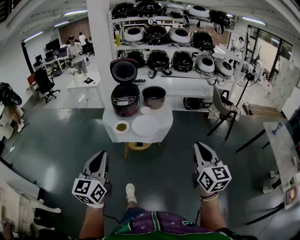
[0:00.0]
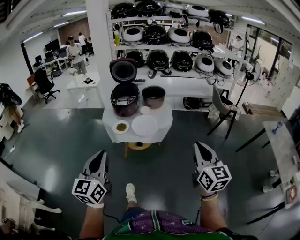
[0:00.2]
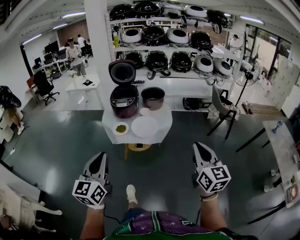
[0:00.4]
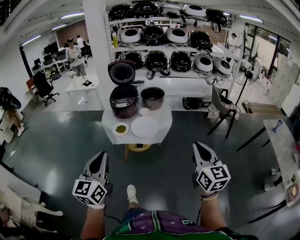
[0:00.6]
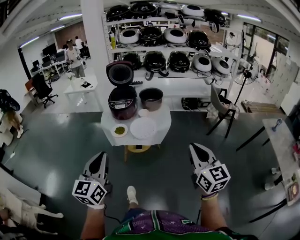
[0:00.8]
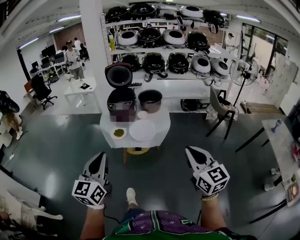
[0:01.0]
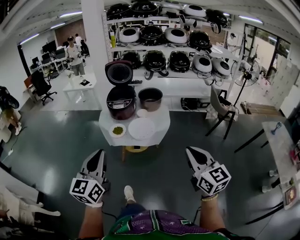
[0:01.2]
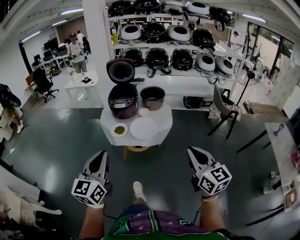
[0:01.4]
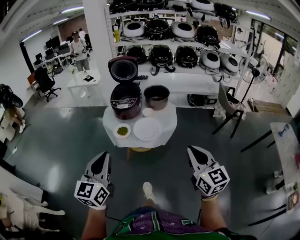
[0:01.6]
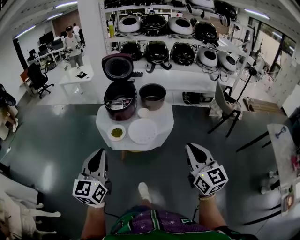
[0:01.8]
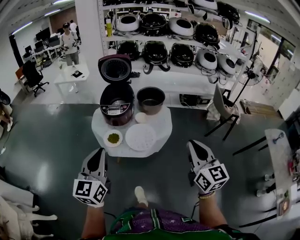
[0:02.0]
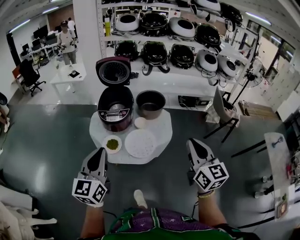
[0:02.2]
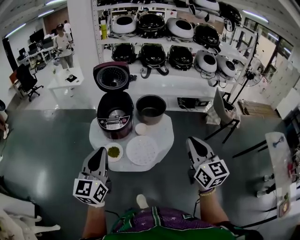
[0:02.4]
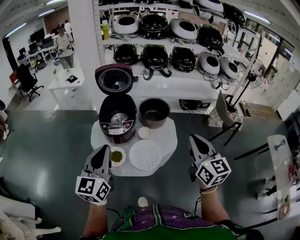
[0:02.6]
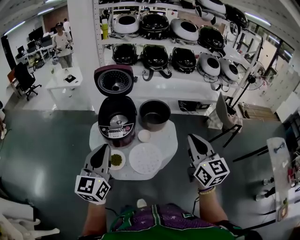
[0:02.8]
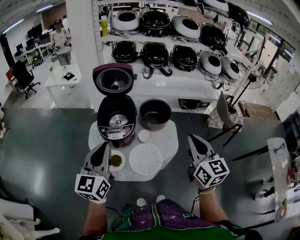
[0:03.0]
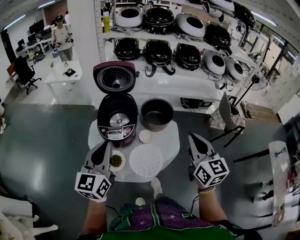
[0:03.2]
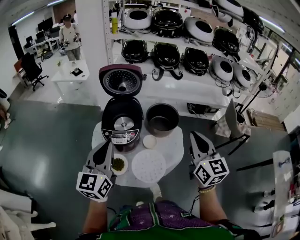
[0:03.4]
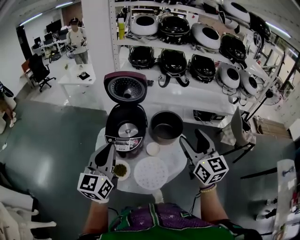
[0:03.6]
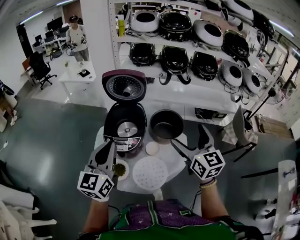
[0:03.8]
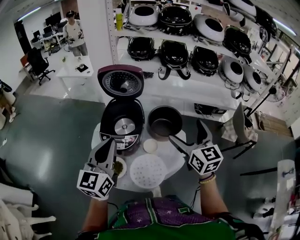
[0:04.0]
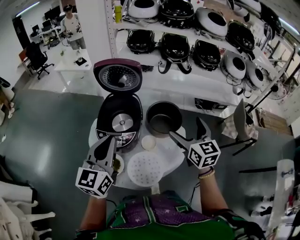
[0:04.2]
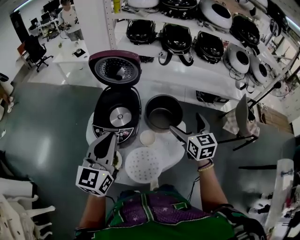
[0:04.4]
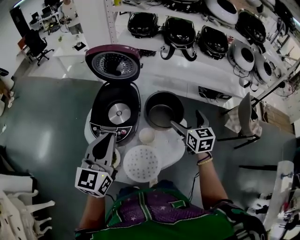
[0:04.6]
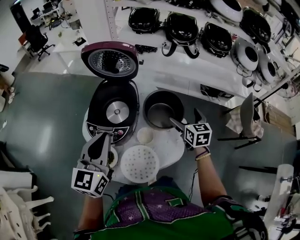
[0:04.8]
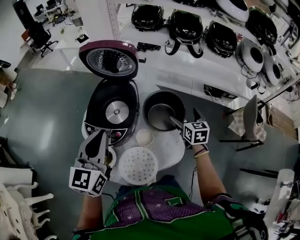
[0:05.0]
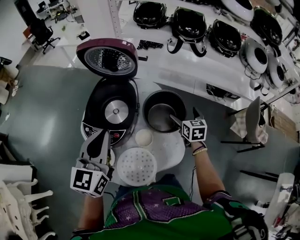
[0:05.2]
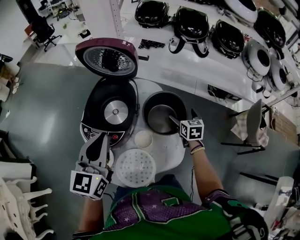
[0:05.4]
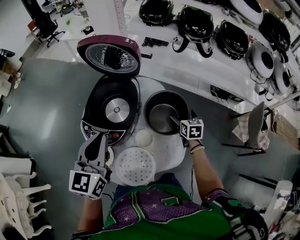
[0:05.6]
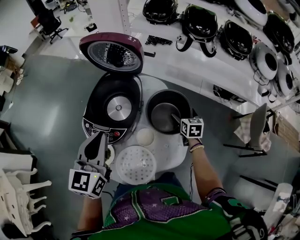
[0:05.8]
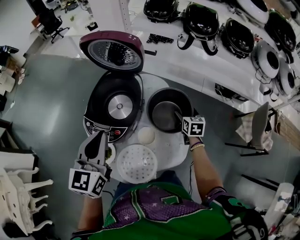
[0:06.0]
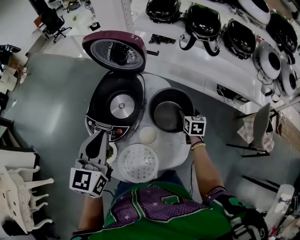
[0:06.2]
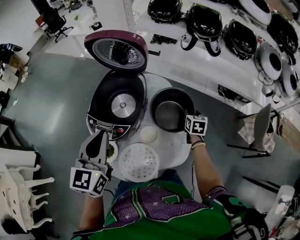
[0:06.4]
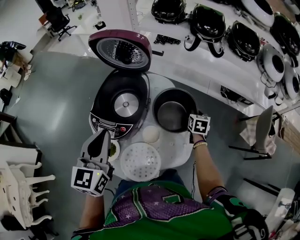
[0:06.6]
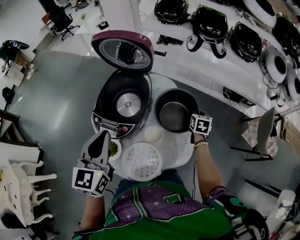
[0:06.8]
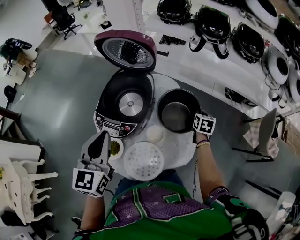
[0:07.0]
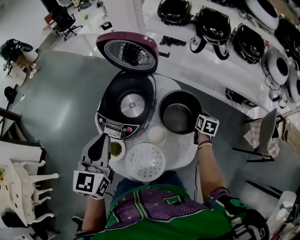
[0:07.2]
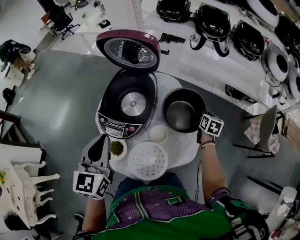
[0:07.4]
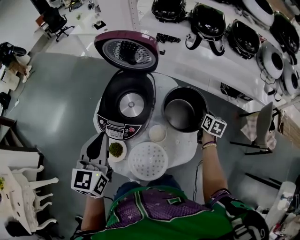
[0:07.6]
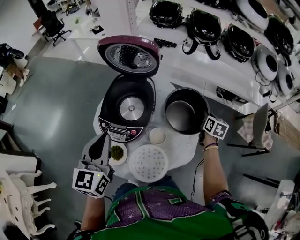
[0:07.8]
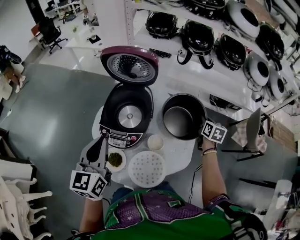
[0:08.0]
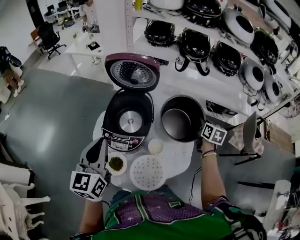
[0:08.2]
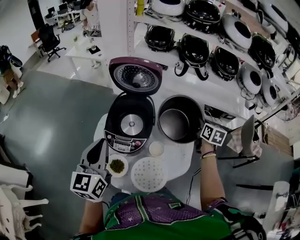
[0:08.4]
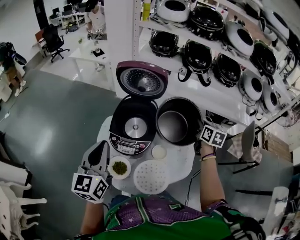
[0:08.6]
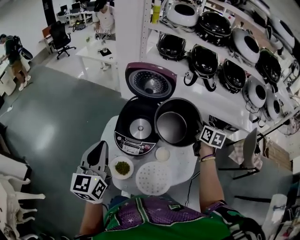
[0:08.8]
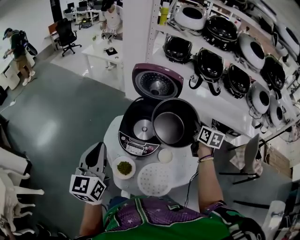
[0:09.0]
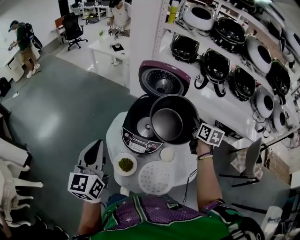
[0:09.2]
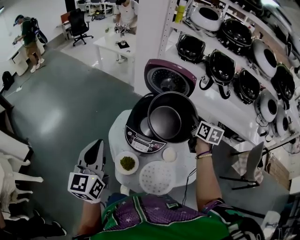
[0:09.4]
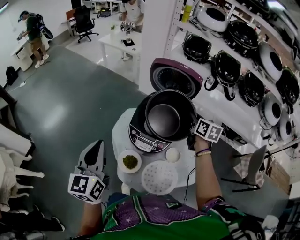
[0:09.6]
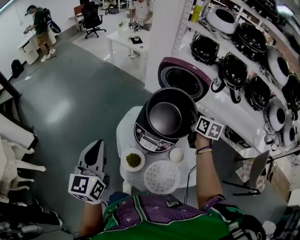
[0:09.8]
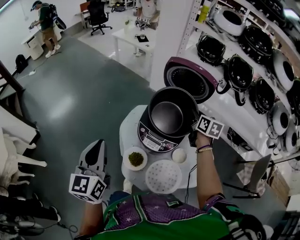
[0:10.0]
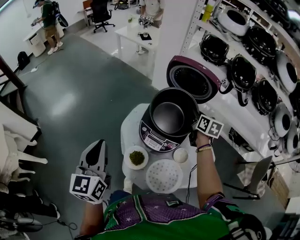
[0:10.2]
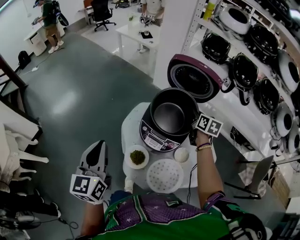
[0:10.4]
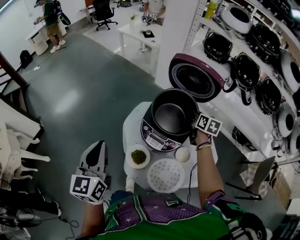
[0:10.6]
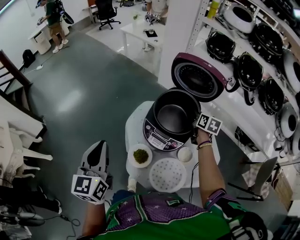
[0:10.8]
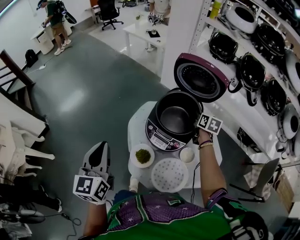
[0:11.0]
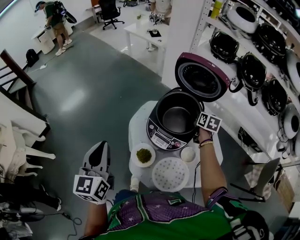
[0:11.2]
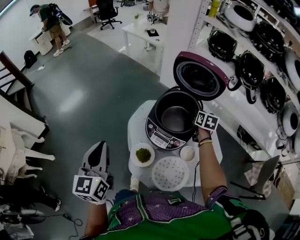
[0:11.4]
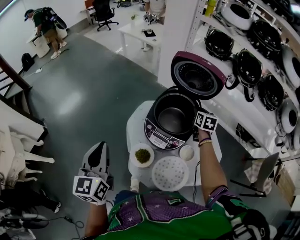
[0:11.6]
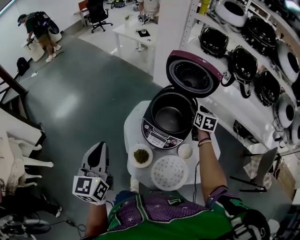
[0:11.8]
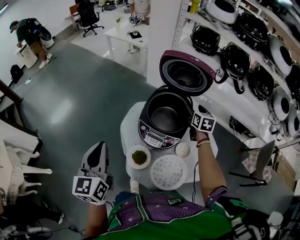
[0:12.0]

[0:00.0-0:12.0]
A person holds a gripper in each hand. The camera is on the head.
0:00.0 to 0:01.6: The two grippers go some 10 cm forward.
0:01.6 to 0:03.0: Both grippers travel together forward, approximately 35 cm.
0:03.0 to 0:04.4: The right gripper moves forward and downward, some 30 cm, and opens its fingers; the left gripper heads forward and to the right, covering about 15 cm.
0:04.4 to 0:06.0: The left gripper goes roughly 10 cm downward and forward; the right gripper travels downward and forward by about 30 cm, and rotates approximately 20 degrees.
0:06.0 to 0:07.6: The left gripper heads to the left, covering roughly 5 cm; the right gripper goes about 5 cm to the right, and closes up.
0:07.6 to 0:09.0: The left gripper shifts about 15 cm to the left, upward and backward. The right gripper goes roughly 25 cm upward and to the left.
0:09.0 to 0:10.4: The left gripper heads to the left, covering approximately 5 cm. The right gripper moves to the left, forward and downward, roughly 20 cm.
0:10.4 to 0:12.0: The right gripper opens.

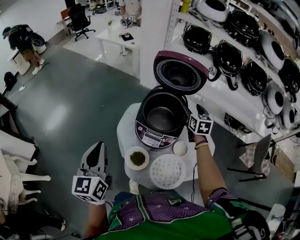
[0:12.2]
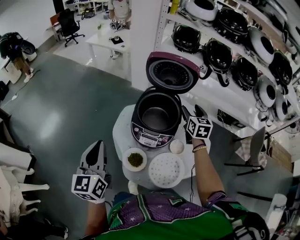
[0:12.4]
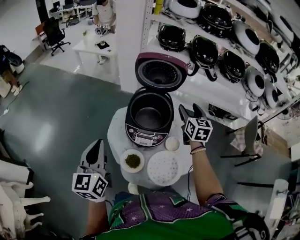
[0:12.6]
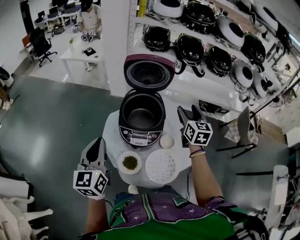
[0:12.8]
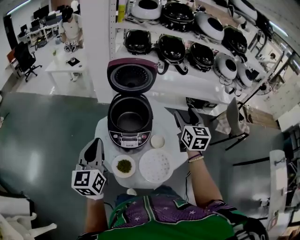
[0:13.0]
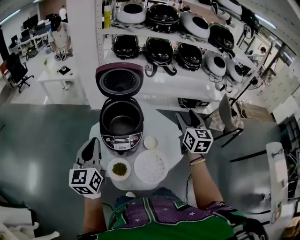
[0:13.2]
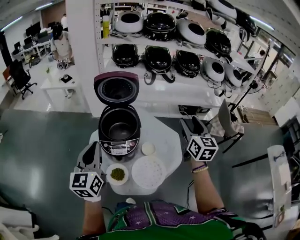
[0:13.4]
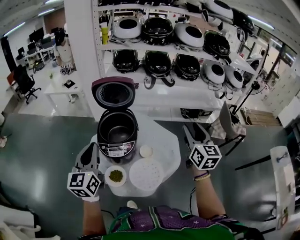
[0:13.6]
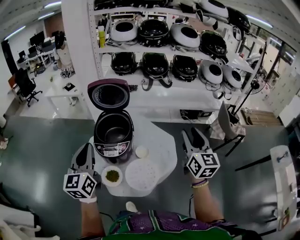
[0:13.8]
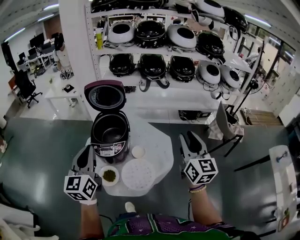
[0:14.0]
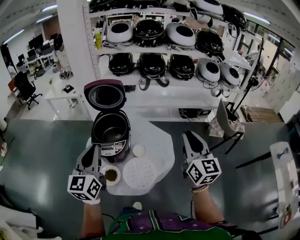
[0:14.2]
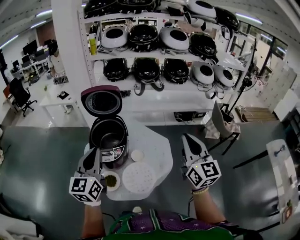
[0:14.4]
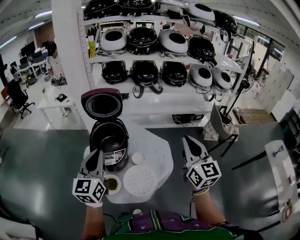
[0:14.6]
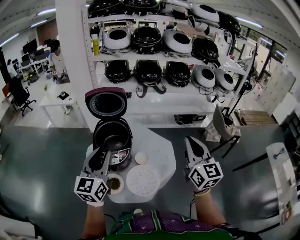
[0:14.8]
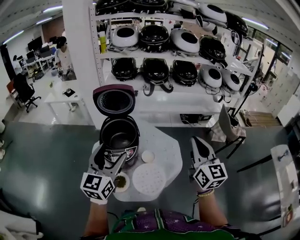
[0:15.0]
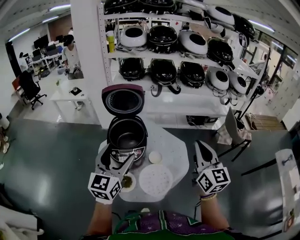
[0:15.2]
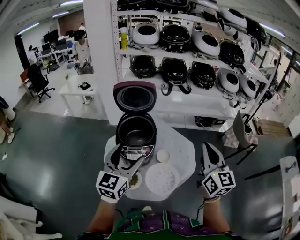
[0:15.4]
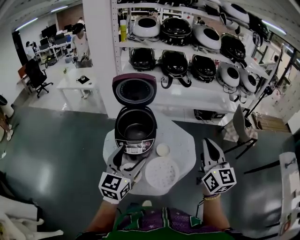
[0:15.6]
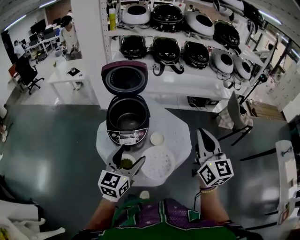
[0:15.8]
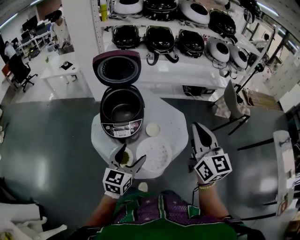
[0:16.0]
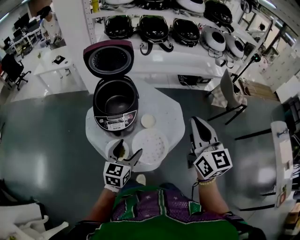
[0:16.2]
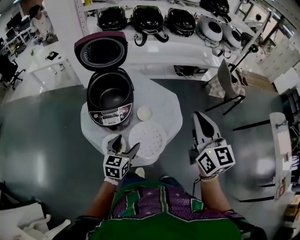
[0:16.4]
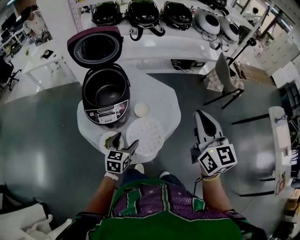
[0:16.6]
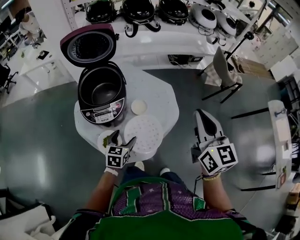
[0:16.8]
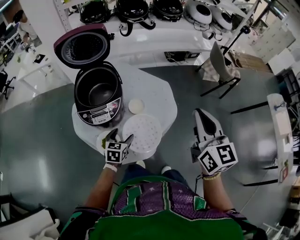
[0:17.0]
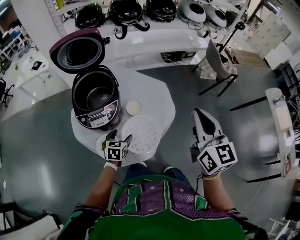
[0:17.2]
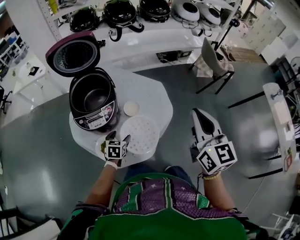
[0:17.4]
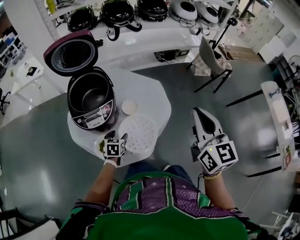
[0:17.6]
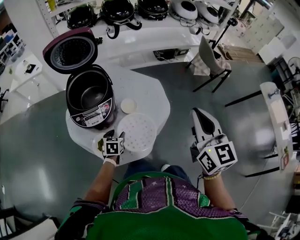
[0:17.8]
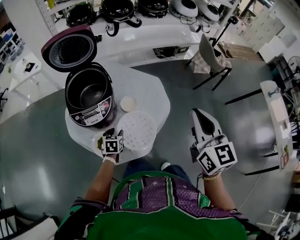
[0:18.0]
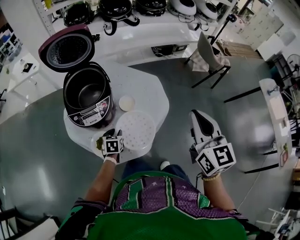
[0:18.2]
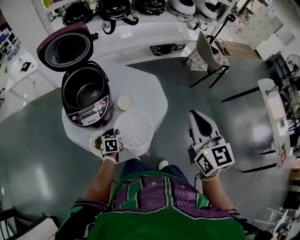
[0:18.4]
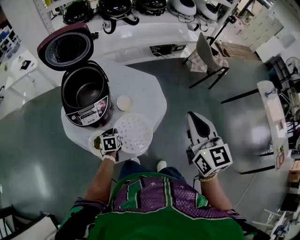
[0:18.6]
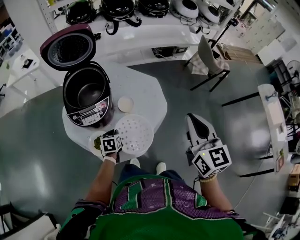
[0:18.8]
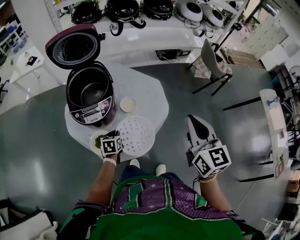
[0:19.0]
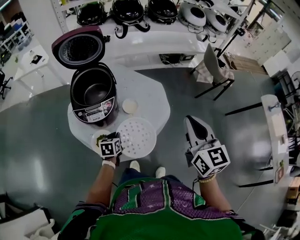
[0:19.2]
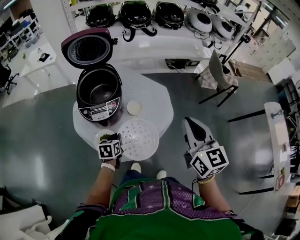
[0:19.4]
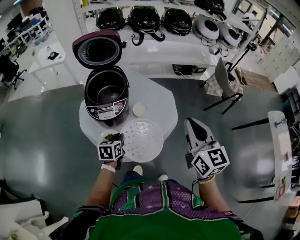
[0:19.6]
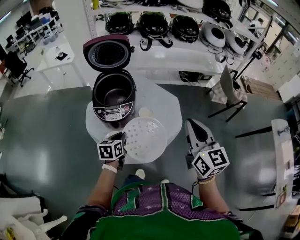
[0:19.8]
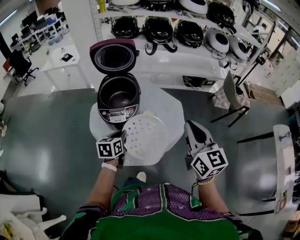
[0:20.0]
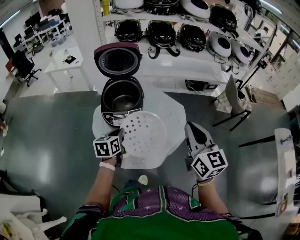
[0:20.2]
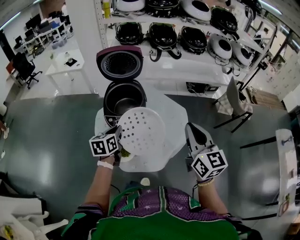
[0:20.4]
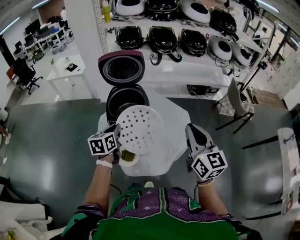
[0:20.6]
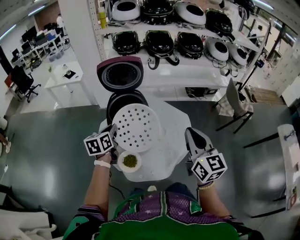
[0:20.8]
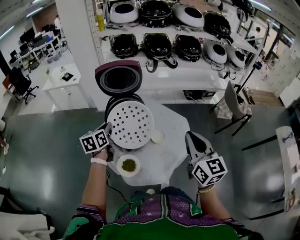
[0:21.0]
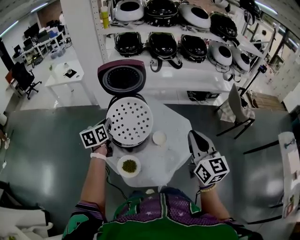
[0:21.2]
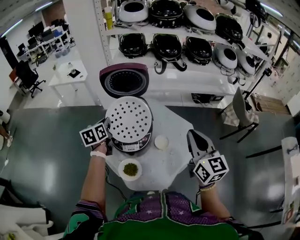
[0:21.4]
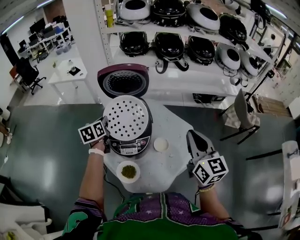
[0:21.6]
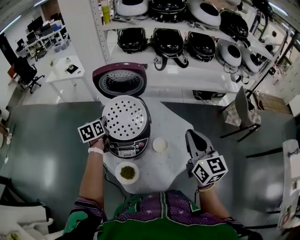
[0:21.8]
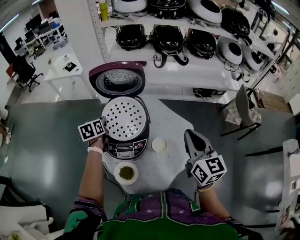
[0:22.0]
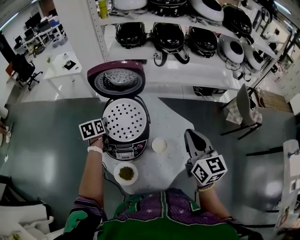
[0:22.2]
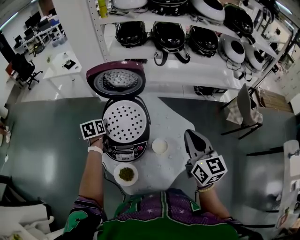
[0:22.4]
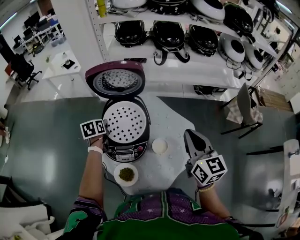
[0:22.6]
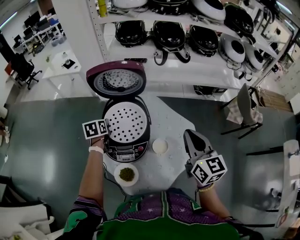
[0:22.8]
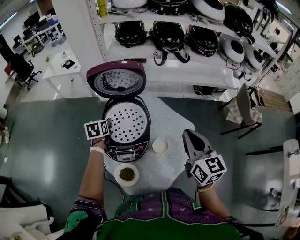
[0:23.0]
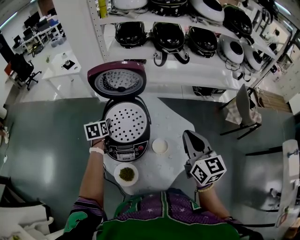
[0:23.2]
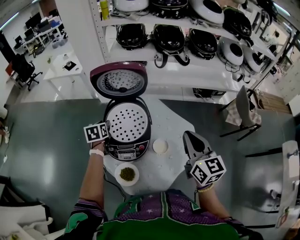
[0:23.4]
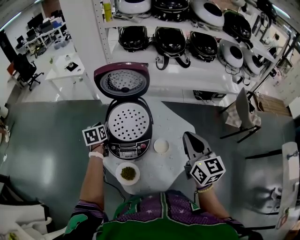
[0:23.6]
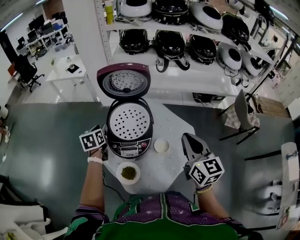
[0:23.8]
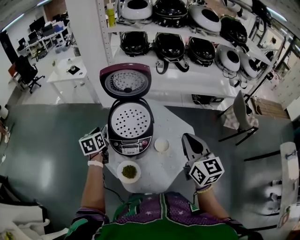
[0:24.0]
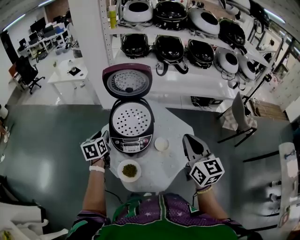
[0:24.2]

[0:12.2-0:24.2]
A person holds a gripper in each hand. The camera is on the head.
0:12.2 to 0:13.8: The left gripper moves approximately 15 cm, and rotates some 30 degrees. Meanwhile the right gripper ends up some 40 cm from where it was, and turns by some 40 degrees.
0:13.8 to 0:15.2: The right gripper is displaced to the left by approximately 5 cm. Meanwhile the left gripper opens.
0:15.2 to 0:16.6: The left gripper is displaced downward by some 30 cm, and tilts its fingers some 30 degrees downward, while the right gripper goes about 5 cm downward.
0:16.6 to 0:18.2: The right gripper moves approximately 5 cm. Meanwhile the left gripper travels downward by approximately 15 cm, rotates roughly 20 degrees, and closes.
0:18.2 to 0:19.8: The right gripper moves roughly 5 cm; the left gripper shifts roughly 15 cm upward, and changes its angle by about 20 degrees.
0:19.8 to 0:21.2: The right gripper moves forward and to the left, approximately 10 cm; the left gripper goes roughly 25 cm forward, to the left and upward.
0:21.2 to 0:22.6: The left gripper moves forward and downward, roughly 15 cm, and changes its angle by about 20 degrees; the right gripper is displaced forward by roughly 15 cm.
0:22.6 to 0:24.2: The left gripper is displaced backward and upward by about 15 cm. Meanwhile the right gripper is displaced backward by about 10 cm.
